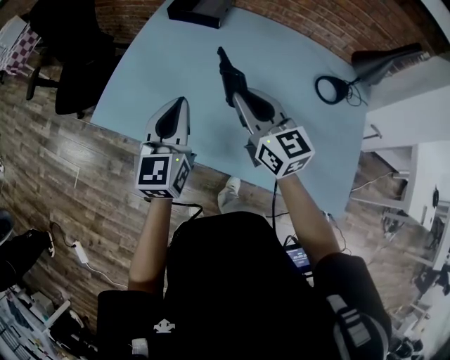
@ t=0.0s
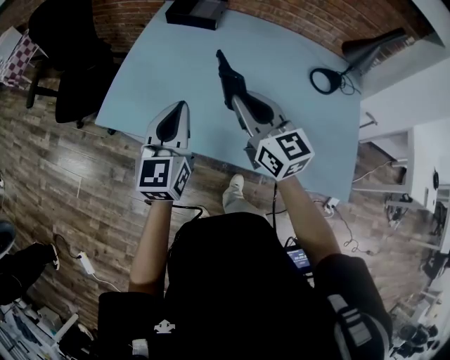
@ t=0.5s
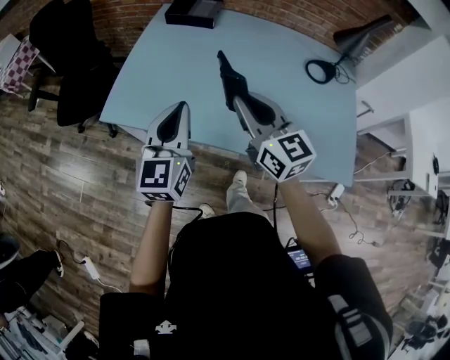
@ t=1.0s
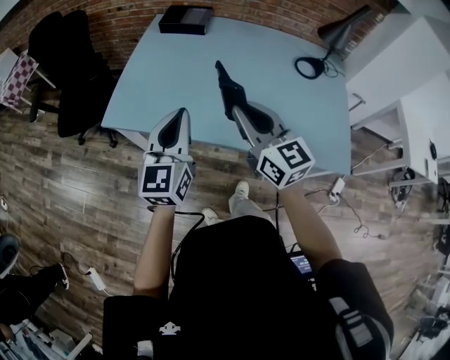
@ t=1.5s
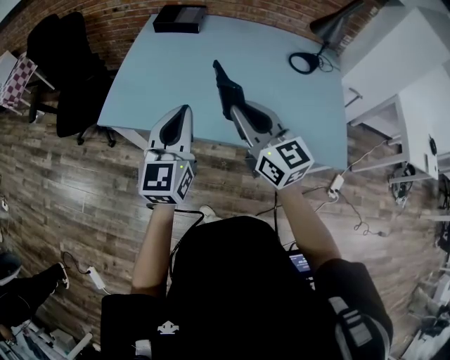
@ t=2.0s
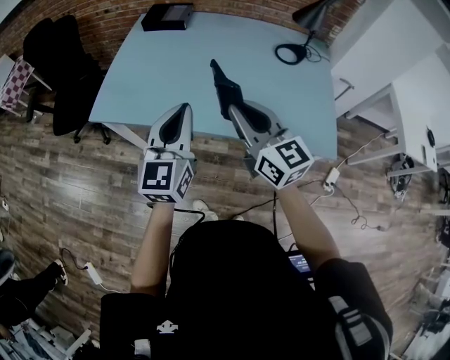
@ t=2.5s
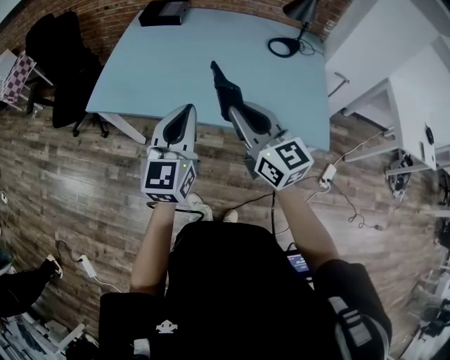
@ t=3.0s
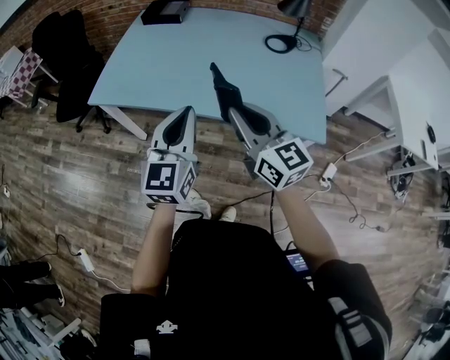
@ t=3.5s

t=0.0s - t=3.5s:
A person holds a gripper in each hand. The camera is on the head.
t=0.0s - t=2.0s: The two grippers go approximately 15 cm backward.
t=2.0s - t=3.5s: Both grippers travel together backward and to the right, some 20 cm.

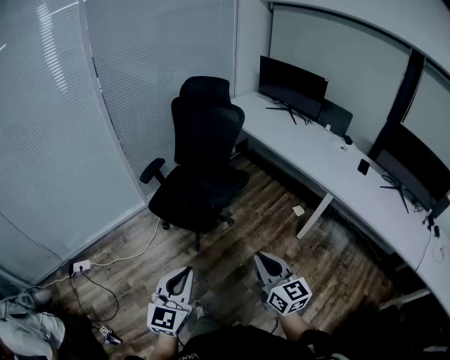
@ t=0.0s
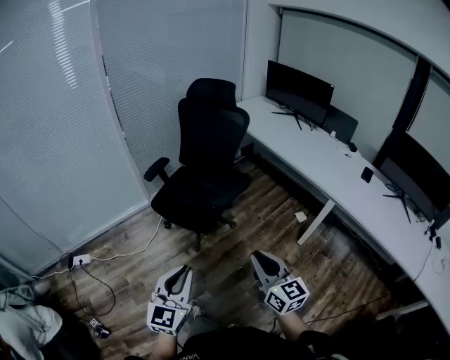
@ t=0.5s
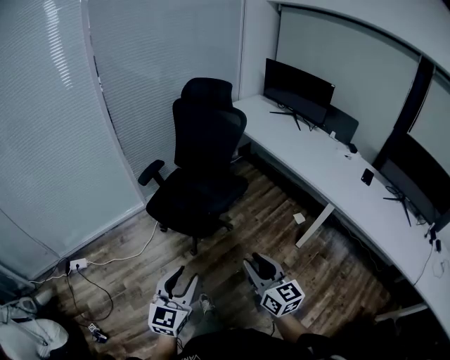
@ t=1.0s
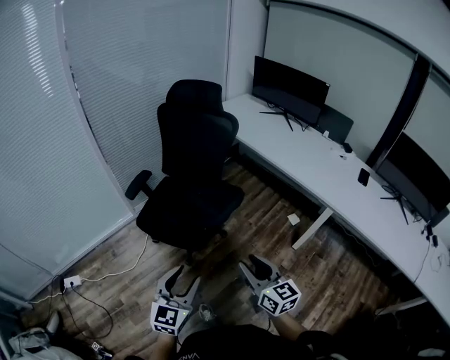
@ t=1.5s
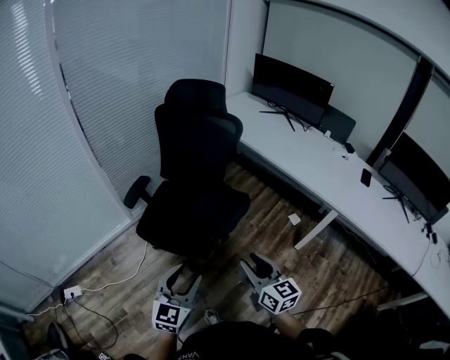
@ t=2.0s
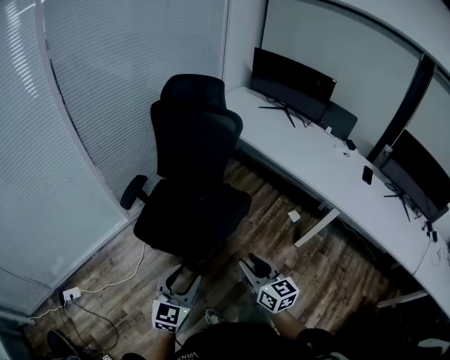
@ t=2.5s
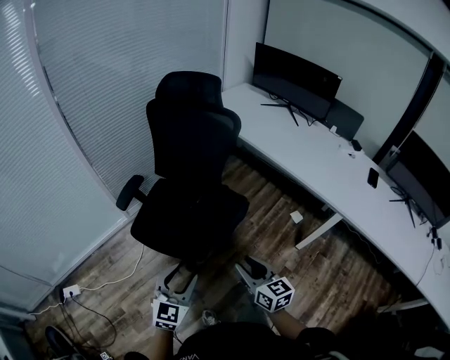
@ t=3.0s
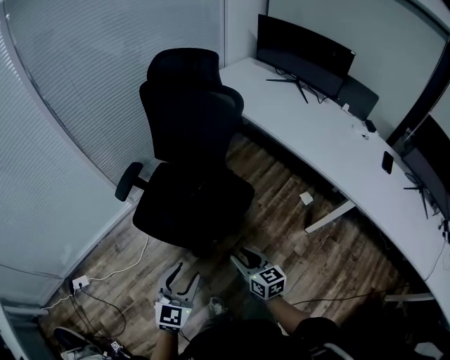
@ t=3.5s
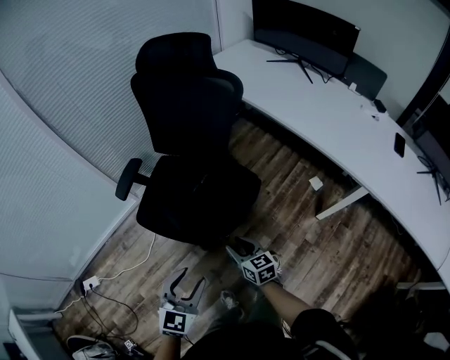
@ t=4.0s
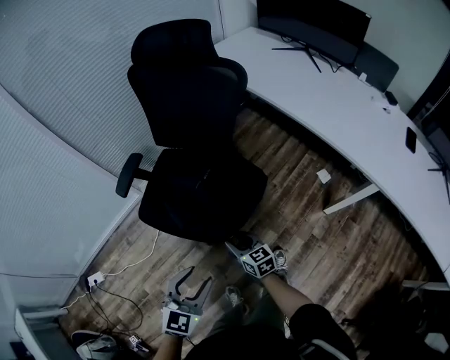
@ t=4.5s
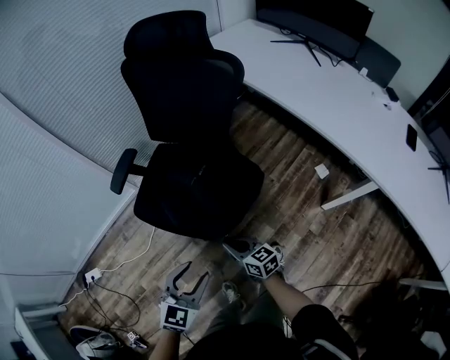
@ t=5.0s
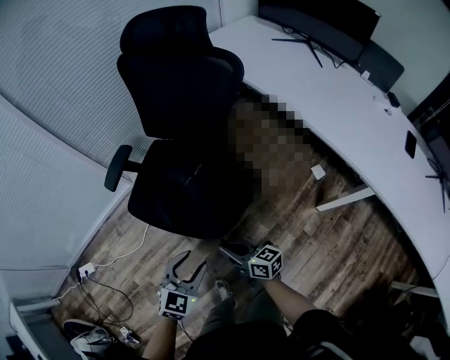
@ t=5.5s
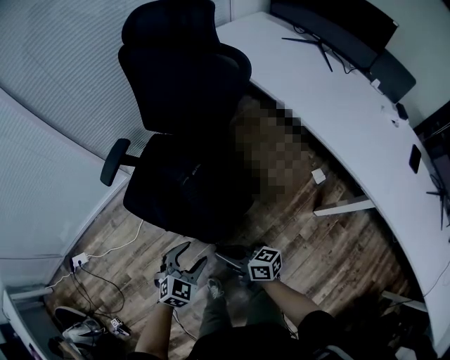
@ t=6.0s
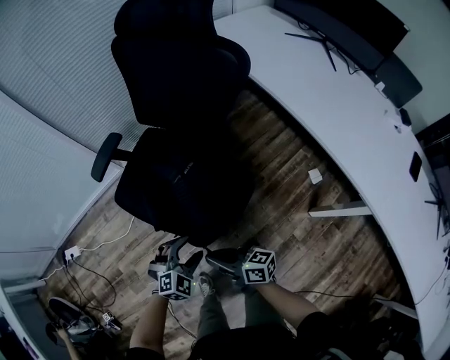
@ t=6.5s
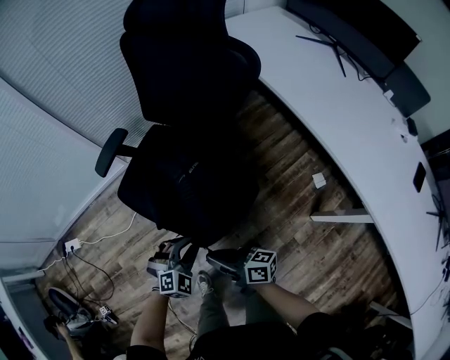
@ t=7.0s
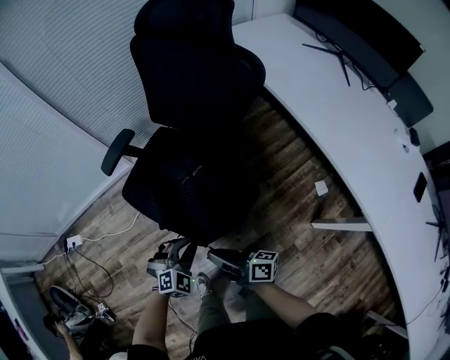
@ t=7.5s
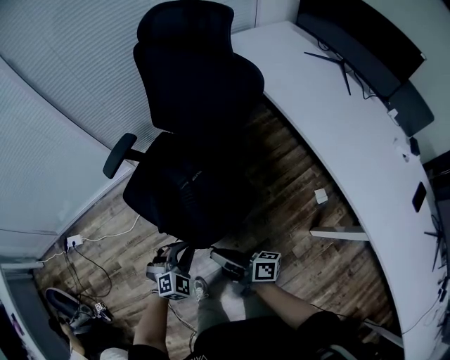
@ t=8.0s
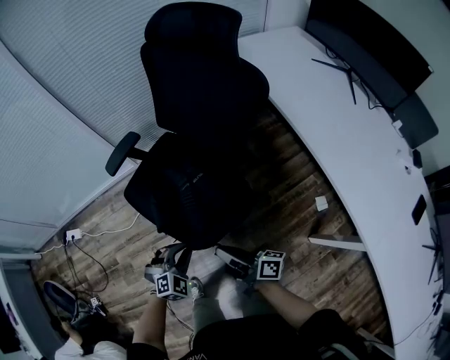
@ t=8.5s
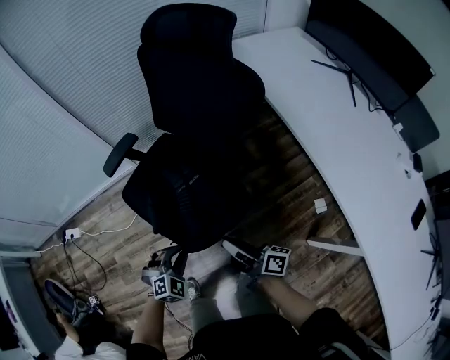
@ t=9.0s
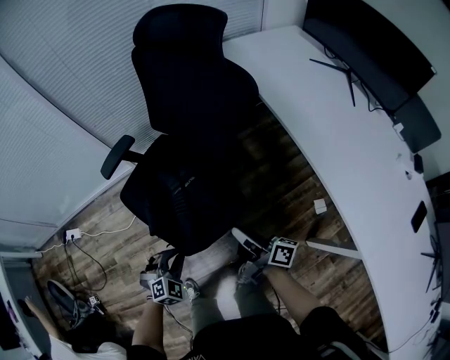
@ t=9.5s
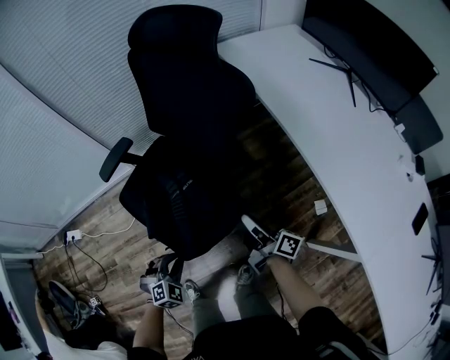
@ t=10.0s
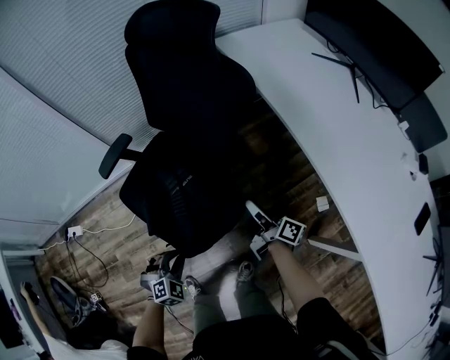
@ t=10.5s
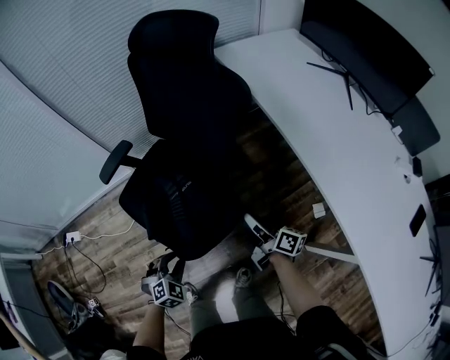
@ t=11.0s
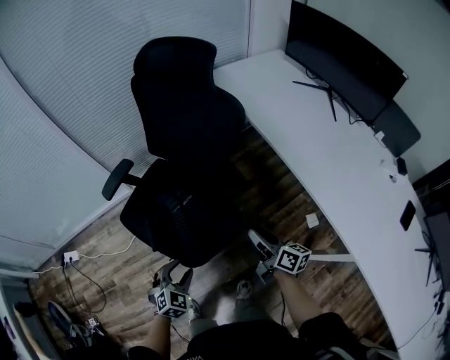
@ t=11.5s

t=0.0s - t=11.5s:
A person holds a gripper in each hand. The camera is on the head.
t=0.0s - t=2.0s: The grippers both shift forward by some 25 cm. The left gripper opens. The right gripper opens up.
t=2.0s - t=4.0s: The left gripper goes about 15 cm downward and forward; the right gripper is displaced downward and forward by about 30 cm, and rotates roughly 20 degrees.
t=4.0s - t=6.0s: The left gripper travels downward, forward and to the right by about 20 cm, and swivels about 20 degrees. Meanwhile the right gripper swivels roughly 40 degrees, and closes.
t=6.0s - t=7.5s: The right gripper moves some 5 cm, and turns by approximately 20 degrees; the left gripper changes place by approximately 5 cm, and closes up.
t=7.5s - t=9.5s: The right gripper moves to the right and forward, roughly 20 cm.
t=9.5s - t=11.5s: The left gripper opens, while the right gripper travels to the right by about 5 cm, goes forward and returns, approximately 10 cm each way, swivels roughly 30 degrees, and opens up.

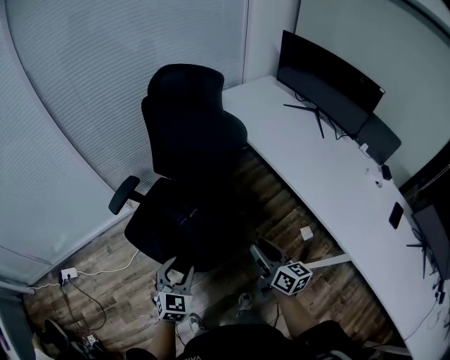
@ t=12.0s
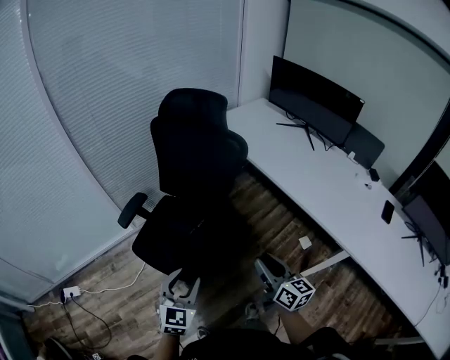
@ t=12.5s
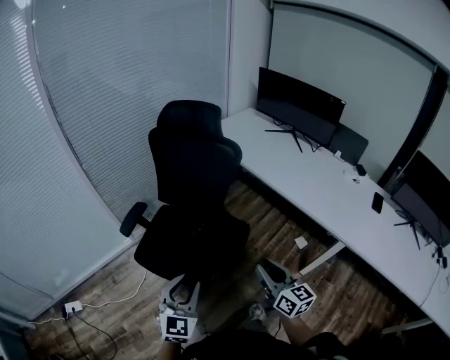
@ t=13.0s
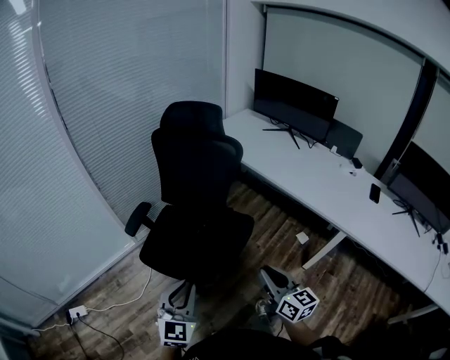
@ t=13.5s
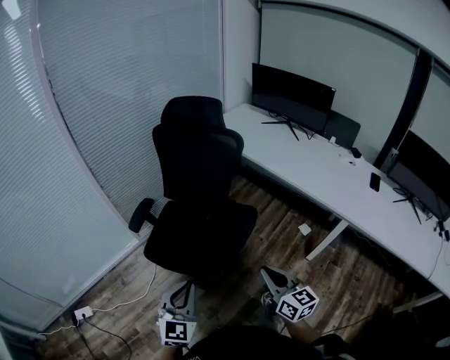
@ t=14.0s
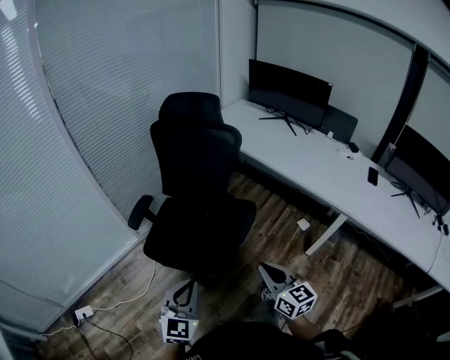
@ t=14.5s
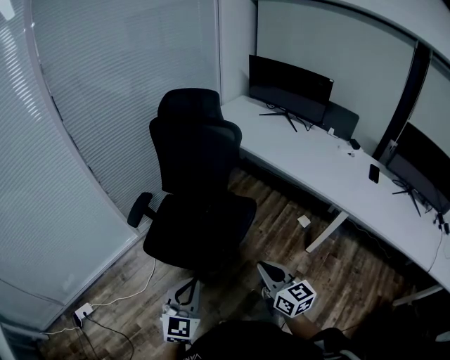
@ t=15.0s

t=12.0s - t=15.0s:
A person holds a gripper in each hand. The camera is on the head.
t=12.0s - t=13.5s: The right gripper heads backward, to the left and upward, covering some 30 cm. Meanwhile the left gripper travels backward, upward and to the left by about 25 cm, turns by about 20 degrees, and closes.
t=13.5s - t=15.0s: The right gripper moves roughly 5 cm.

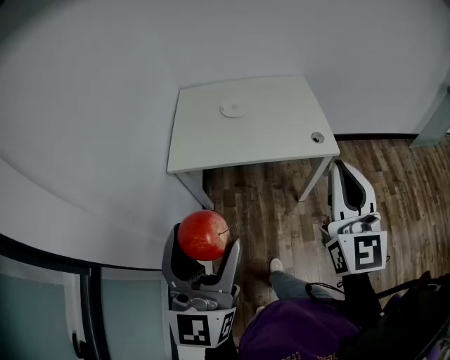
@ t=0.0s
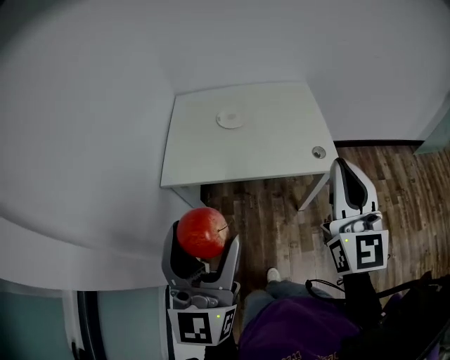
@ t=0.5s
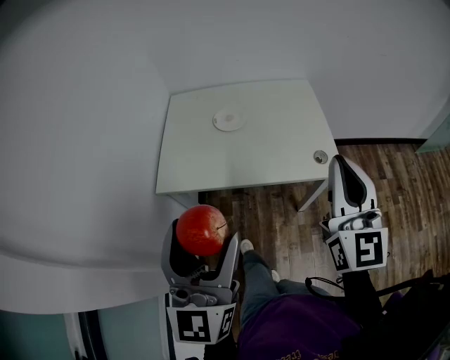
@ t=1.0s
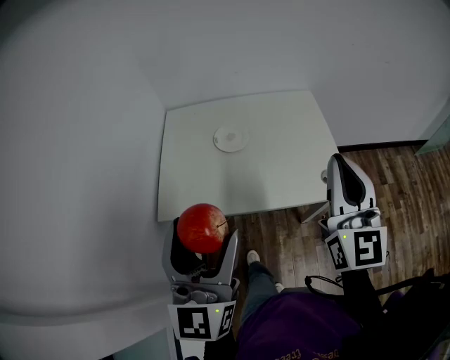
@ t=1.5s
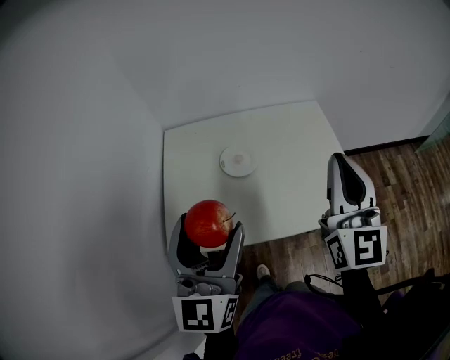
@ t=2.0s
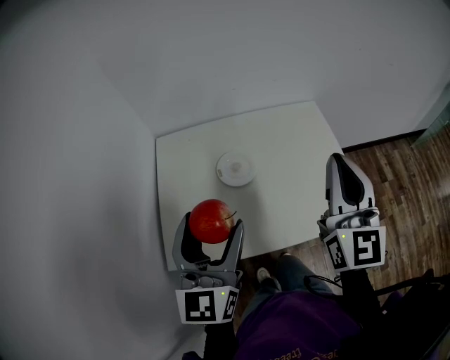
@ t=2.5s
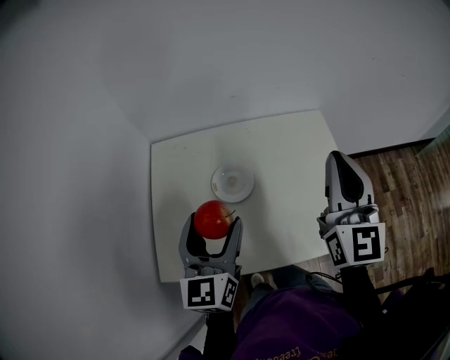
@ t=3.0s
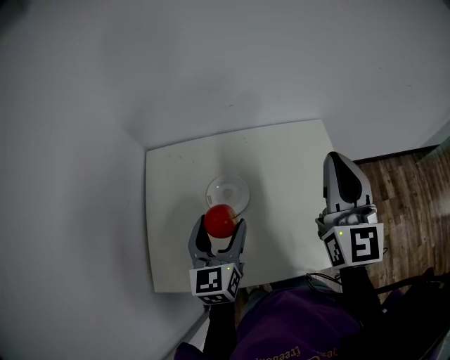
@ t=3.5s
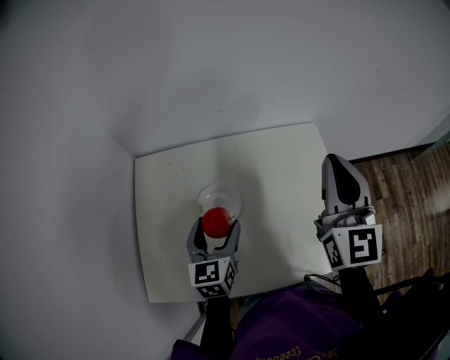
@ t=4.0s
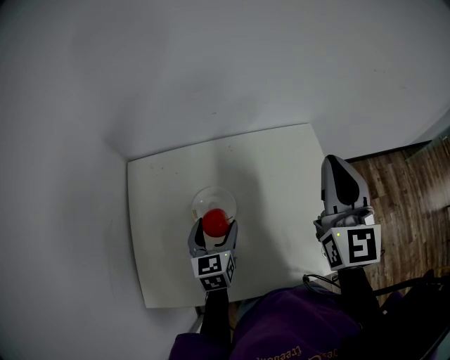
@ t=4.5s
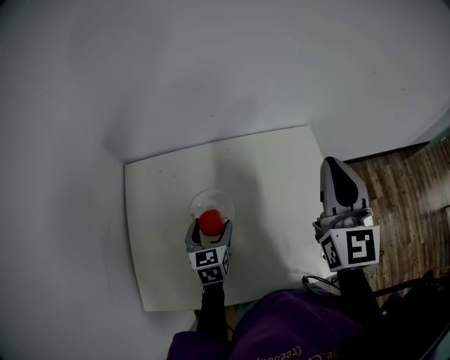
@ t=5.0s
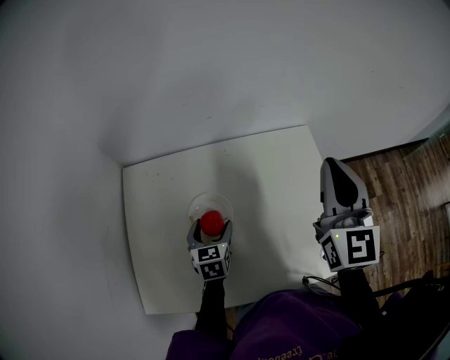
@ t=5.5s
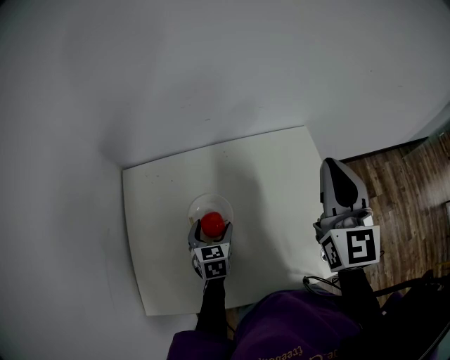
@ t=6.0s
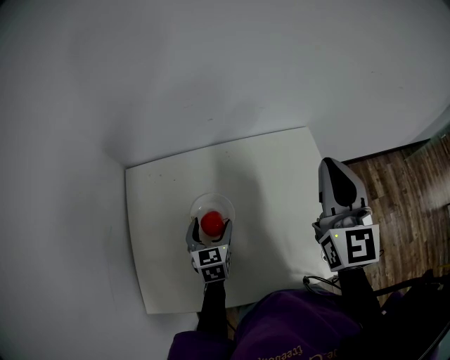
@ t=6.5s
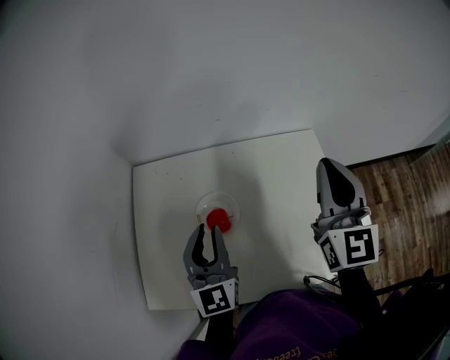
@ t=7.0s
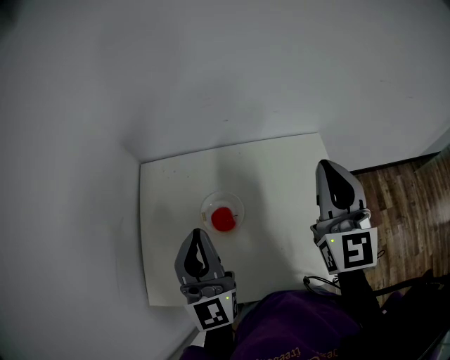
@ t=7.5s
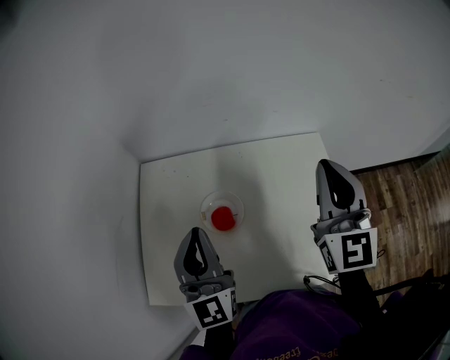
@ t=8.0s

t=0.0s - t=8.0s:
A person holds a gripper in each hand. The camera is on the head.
t=0.0s - t=2.0s: Both grippers travel together forward, about 40 cm.
t=2.0s - t=4.0s: The left gripper moves downward and forward, roughly 30 cm, and turns by some 30 degrees, while the right gripper shifts about 20 cm forward.
t=4.0s - t=6.0s: The left gripper moves downward, about 15 cm.
t=6.0s - t=8.0s: The left gripper heads upward, covering approximately 30 cm, tips its fingers upward by approximately 50 degrees, and closes its fingers, while the right gripper shifts by roughly 5 cm.
